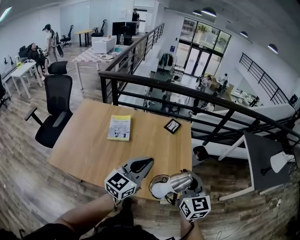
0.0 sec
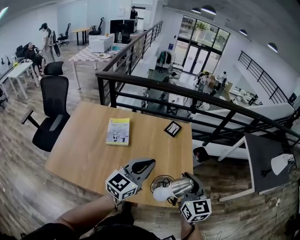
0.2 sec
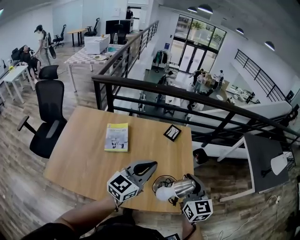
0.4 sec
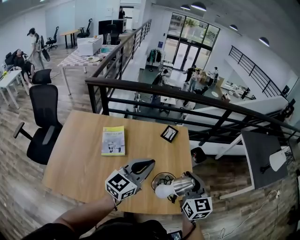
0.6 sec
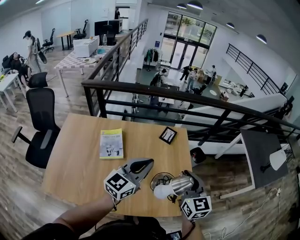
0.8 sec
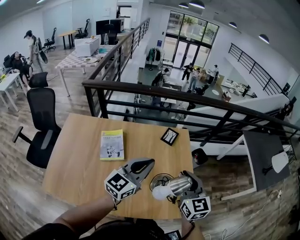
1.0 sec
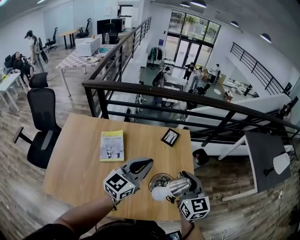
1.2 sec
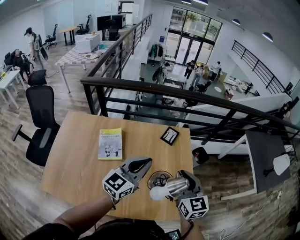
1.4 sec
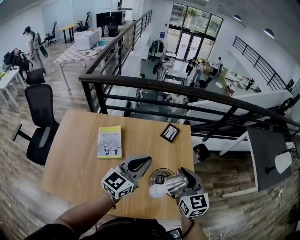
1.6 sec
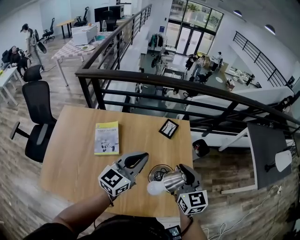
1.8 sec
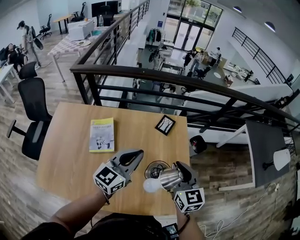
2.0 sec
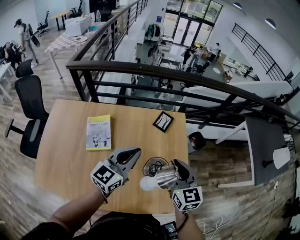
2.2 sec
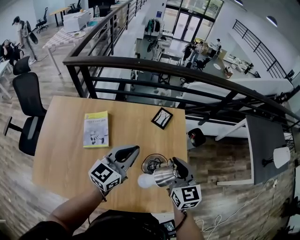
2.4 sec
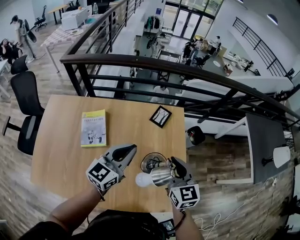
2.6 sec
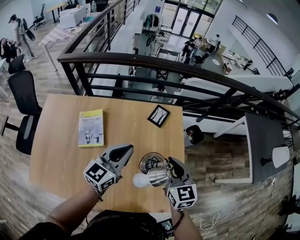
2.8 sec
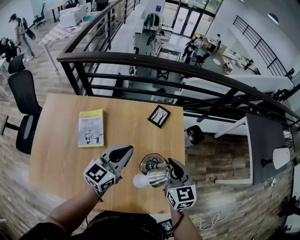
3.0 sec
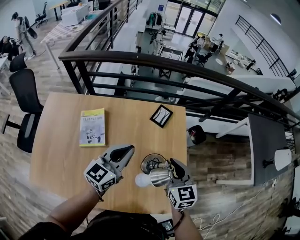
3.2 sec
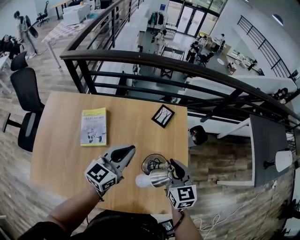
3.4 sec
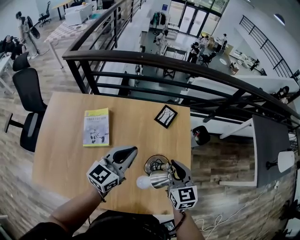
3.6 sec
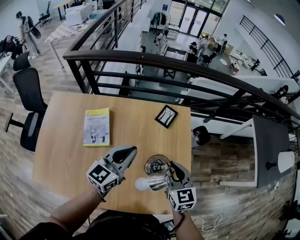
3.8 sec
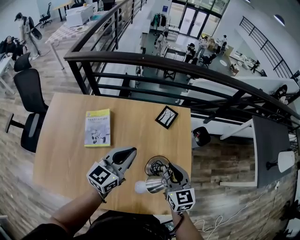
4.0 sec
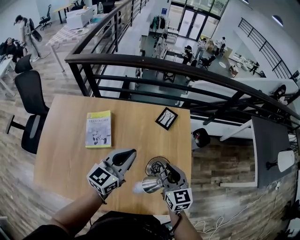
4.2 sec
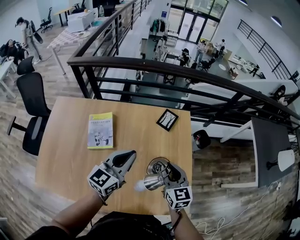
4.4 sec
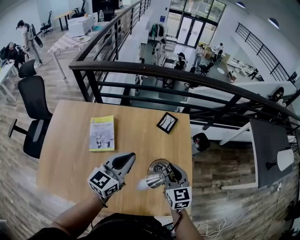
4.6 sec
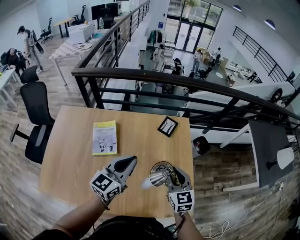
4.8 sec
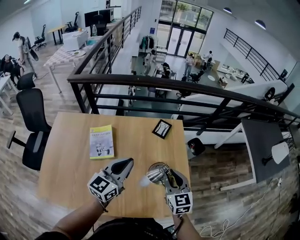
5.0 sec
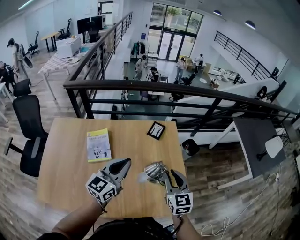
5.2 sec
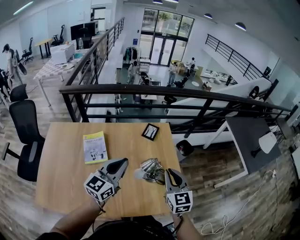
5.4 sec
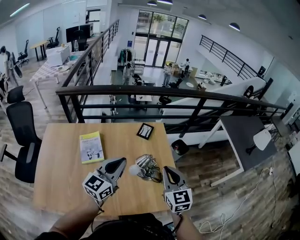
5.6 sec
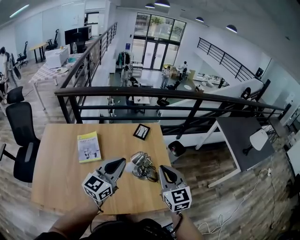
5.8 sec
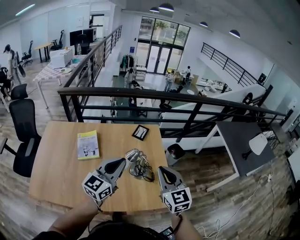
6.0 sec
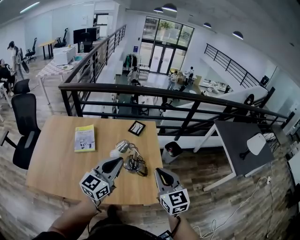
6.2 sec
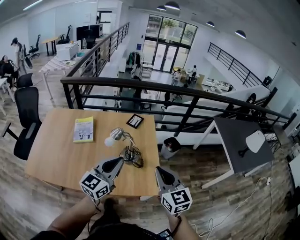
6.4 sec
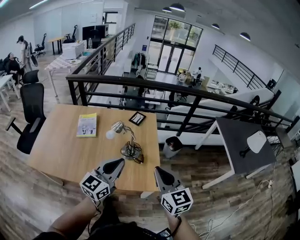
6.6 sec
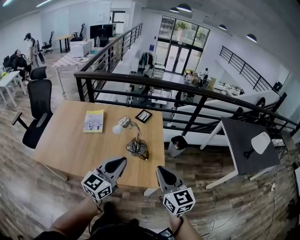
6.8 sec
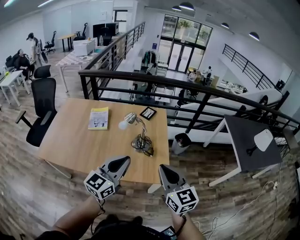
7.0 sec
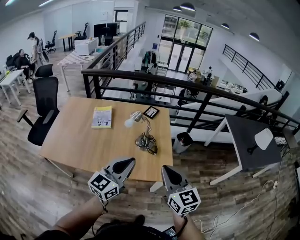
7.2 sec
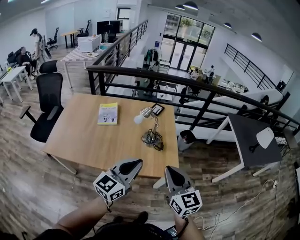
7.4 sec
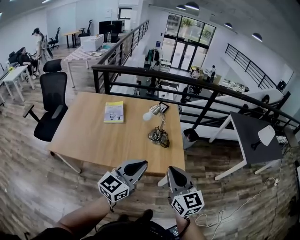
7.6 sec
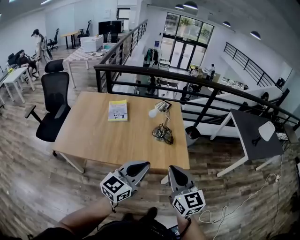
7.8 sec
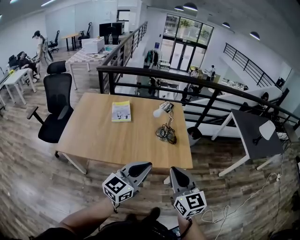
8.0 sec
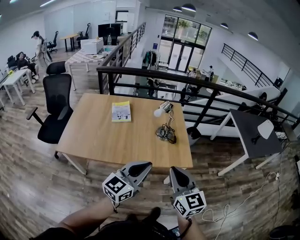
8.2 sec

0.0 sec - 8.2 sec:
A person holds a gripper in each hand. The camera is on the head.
0.0 sec - 1.6 sec: Both grippers travel together forward, about 25 cm.
1.6 sec - 3.2 sec: The left gripper heads forward and downward, covering approximately 10 cm. The right gripper is displaced downward and forward by about 15 cm.
3.2 sec - 5.0 sec: Both grippers travel together backward, some 10 cm.
5.0 sec - 6.6 sec: The right gripper moves backward, to the right and upward, about 35 cm, while the left gripper heads backward and to the right, covering some 35 cm.
6.6 sec - 8.2 sec: Both grippers travel together backward and to the left, approximately 30 cm.

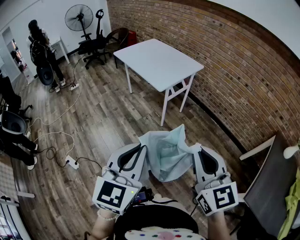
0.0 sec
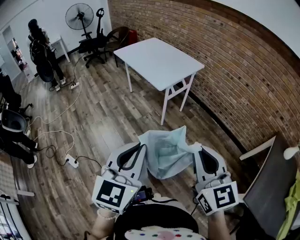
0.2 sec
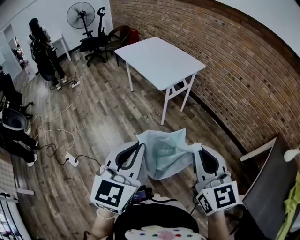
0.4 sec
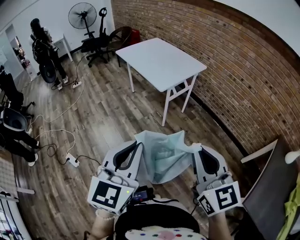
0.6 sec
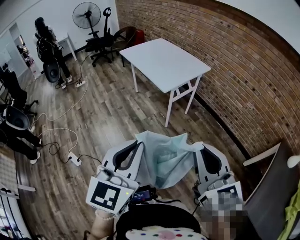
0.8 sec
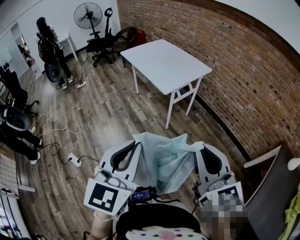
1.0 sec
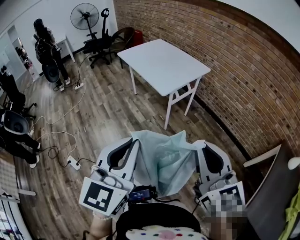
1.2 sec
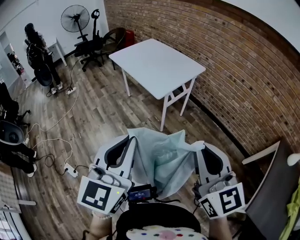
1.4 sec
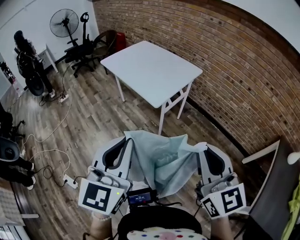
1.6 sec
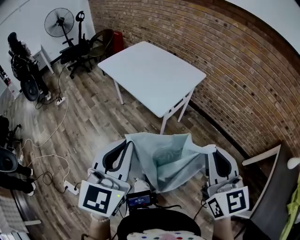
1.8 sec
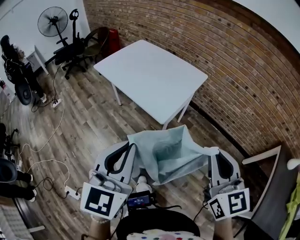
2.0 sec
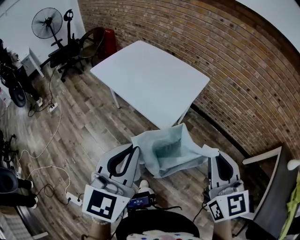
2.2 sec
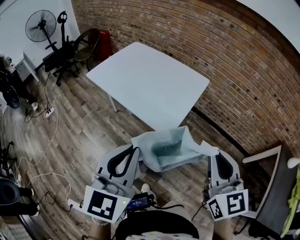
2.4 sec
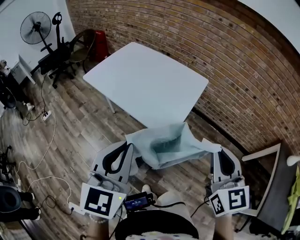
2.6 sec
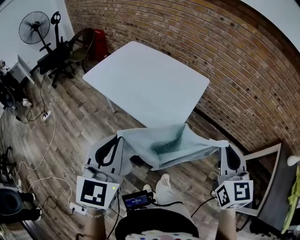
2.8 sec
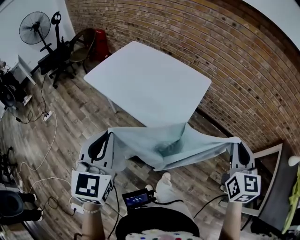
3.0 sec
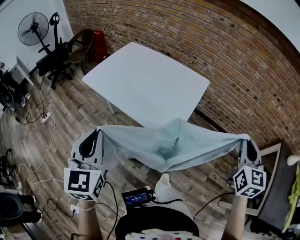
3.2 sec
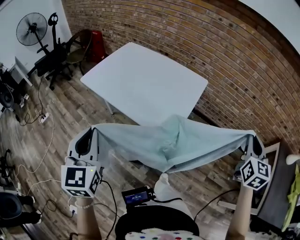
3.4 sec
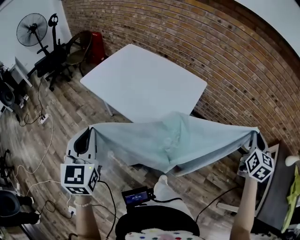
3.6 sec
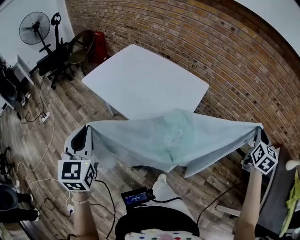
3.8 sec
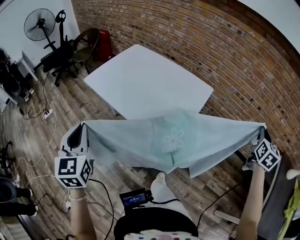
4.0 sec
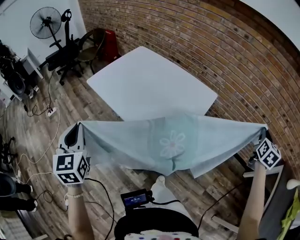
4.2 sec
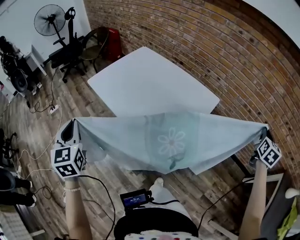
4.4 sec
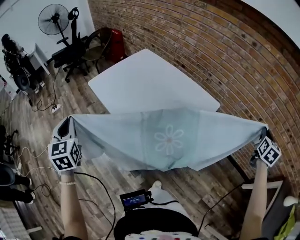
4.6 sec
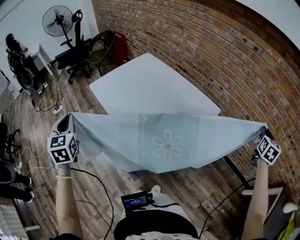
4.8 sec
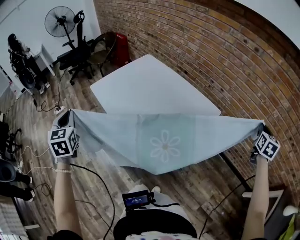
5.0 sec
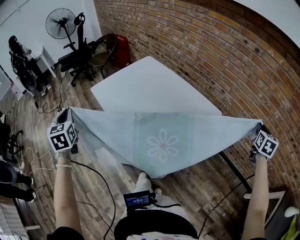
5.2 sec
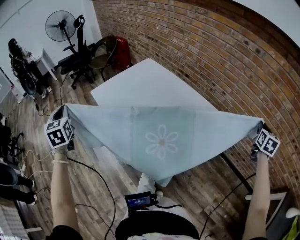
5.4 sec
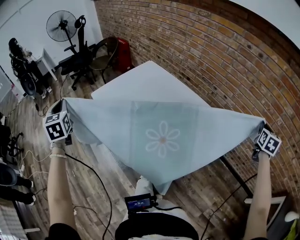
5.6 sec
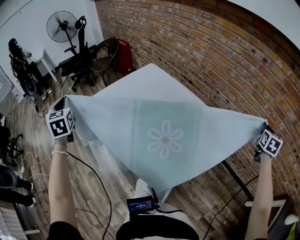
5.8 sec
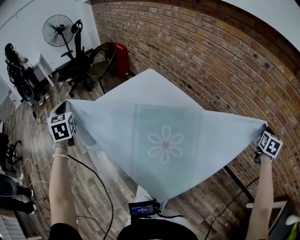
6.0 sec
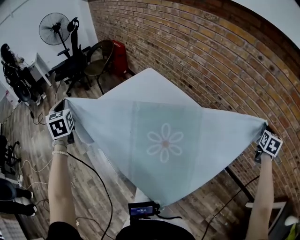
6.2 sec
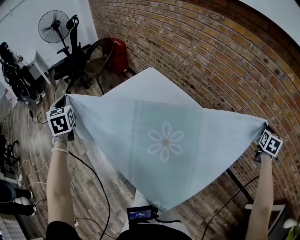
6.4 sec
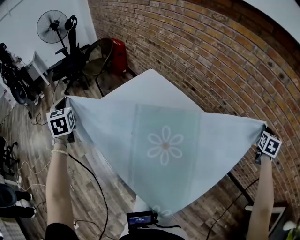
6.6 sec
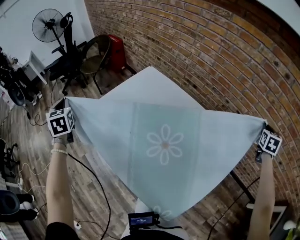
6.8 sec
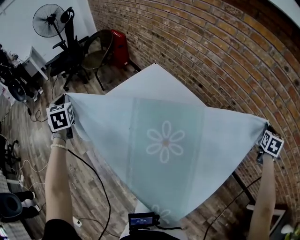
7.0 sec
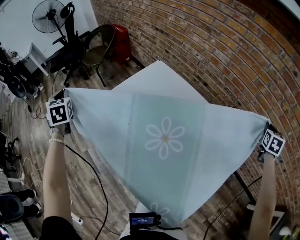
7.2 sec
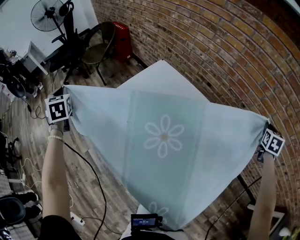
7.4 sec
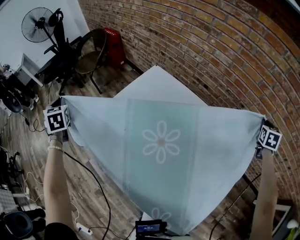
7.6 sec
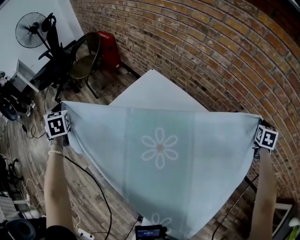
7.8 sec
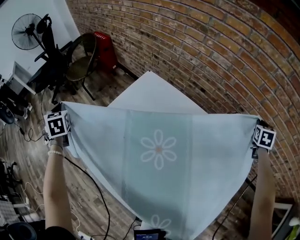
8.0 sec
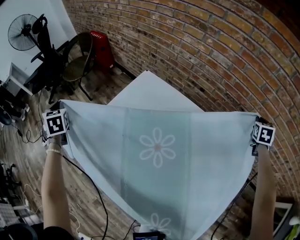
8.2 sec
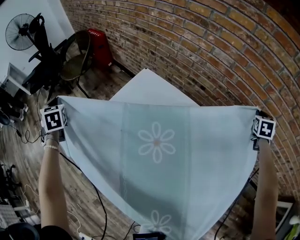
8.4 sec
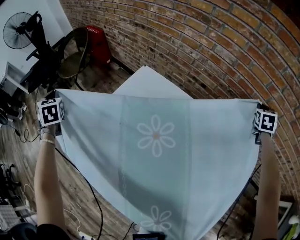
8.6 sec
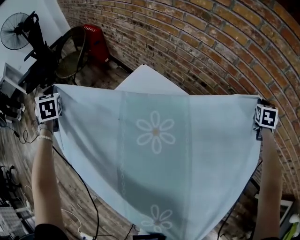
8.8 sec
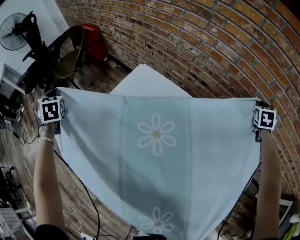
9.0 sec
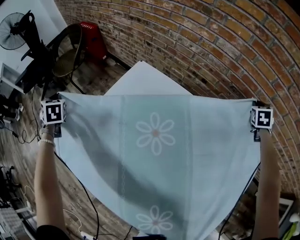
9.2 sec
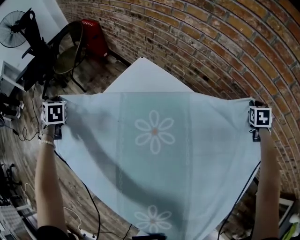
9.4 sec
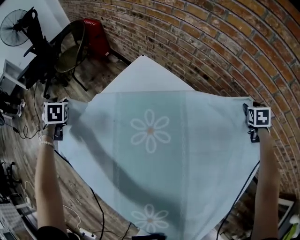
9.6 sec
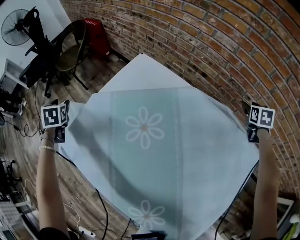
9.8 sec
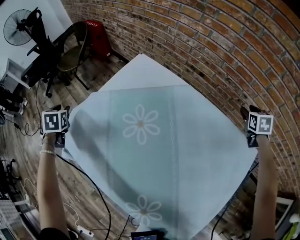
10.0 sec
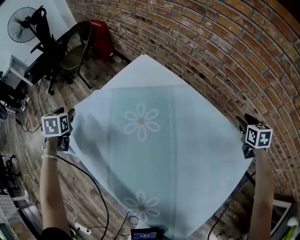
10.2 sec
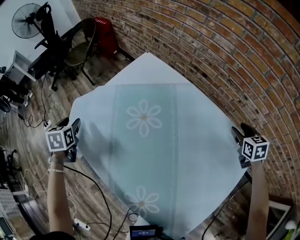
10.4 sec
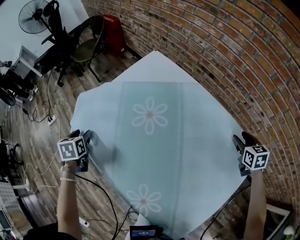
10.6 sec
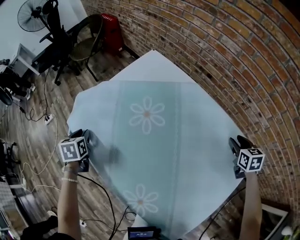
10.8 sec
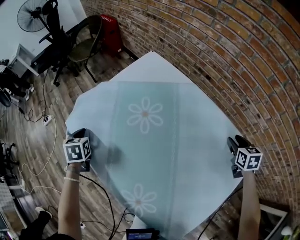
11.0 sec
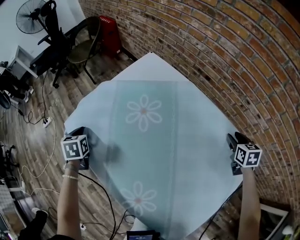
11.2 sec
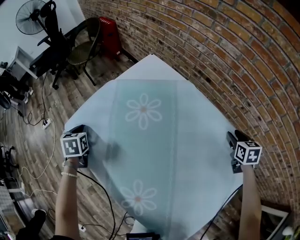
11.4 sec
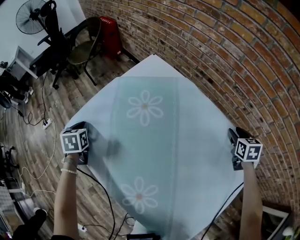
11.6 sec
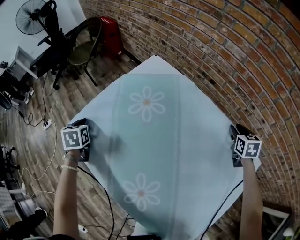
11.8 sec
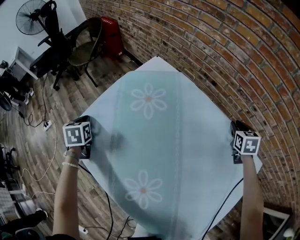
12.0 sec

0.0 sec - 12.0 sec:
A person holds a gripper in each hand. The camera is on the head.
0.0 sec - 1.6 sec: The grippers both shift forward by roughly 15 cm.
1.6 sec - 3.0 sec: The right gripper is displaced forward by roughly 25 cm, and turns by about 40 degrees; the left gripper goes some 35 cm forward and to the left.
3.0 sec - 4.4 sec: The left gripper travels to the left and forward by some 15 cm, and rotates some 30 degrees. The right gripper travels forward and to the right by roughly 35 cm, and turns by roughly 20 degrees.
4.4 sec - 6.0 sec: The right gripper shifts about 25 cm forward; the left gripper heads forward and to the left, covering roughly 25 cm.
6.0 sec - 7.6 sec: Both grippers move forward, to the left and downward, about 30 cm.
7.6 sec - 9.0 sec: Both grippers travel together forward and downward, some 15 cm.
9.0 sec - 10.4 sec: The right gripper moves backward, to the left and downward, some 20 cm, rotates about 40 degrees, and opens its fingers; the left gripper heads backward, covering roughly 25 cm, swivels roughly 30 degrees, and opens its fingers.
10.4 sec - 12.0 sec: The right gripper goes approximately 10 cm forward, and closes, while the left gripper shifts approximately 5 cm downward, and closes up.

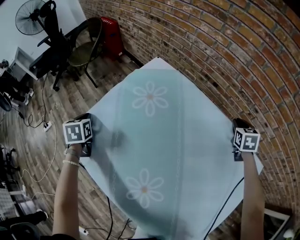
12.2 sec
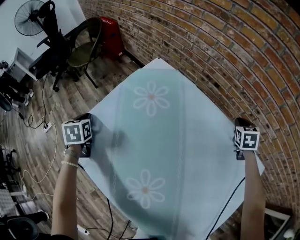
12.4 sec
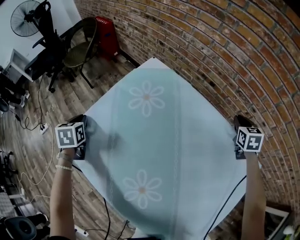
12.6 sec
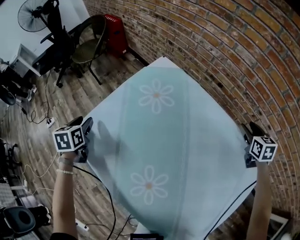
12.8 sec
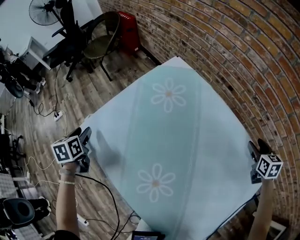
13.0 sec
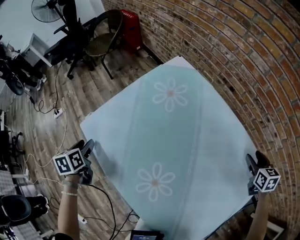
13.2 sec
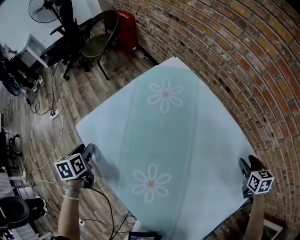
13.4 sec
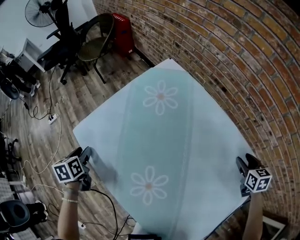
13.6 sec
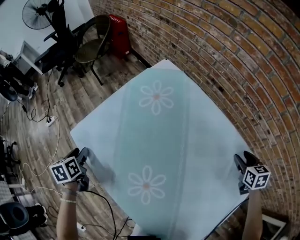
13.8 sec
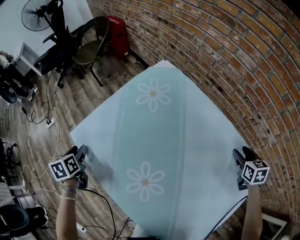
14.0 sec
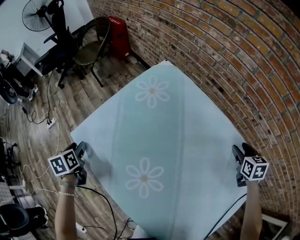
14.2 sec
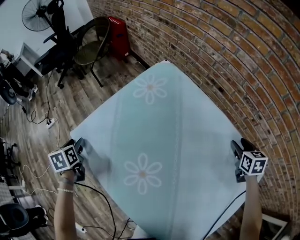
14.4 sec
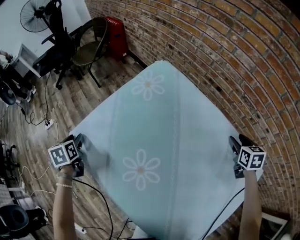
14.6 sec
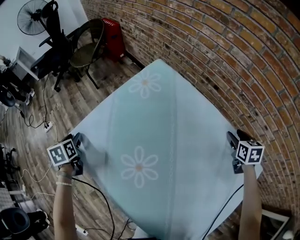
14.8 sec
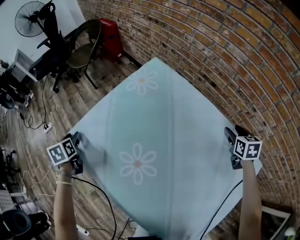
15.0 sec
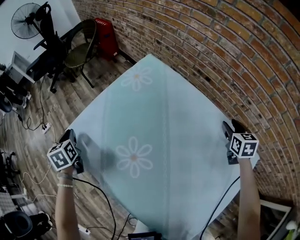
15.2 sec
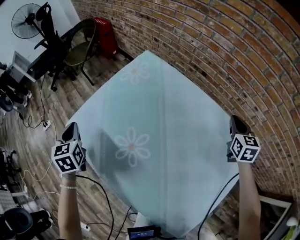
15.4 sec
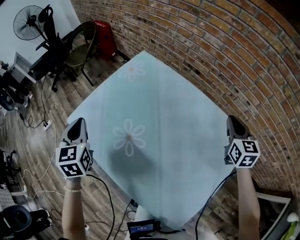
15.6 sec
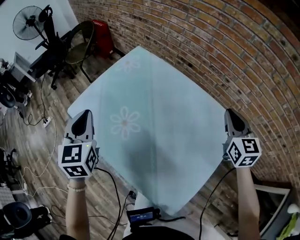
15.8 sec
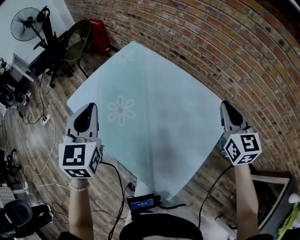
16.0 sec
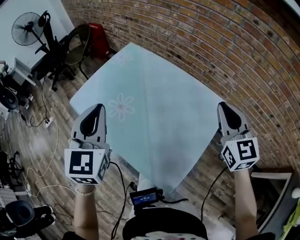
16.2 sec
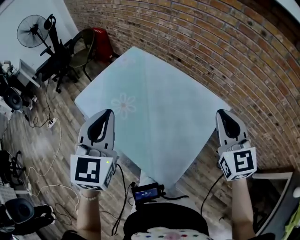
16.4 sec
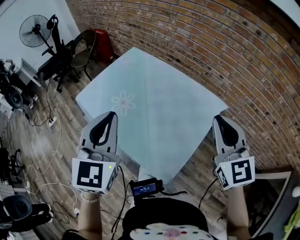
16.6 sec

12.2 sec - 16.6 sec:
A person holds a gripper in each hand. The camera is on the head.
12.2 sec - 13.6 sec: Both grippers travel together backward, about 15 cm. The left gripper changes its angle by approximately 20 degrees, and opens its fingers. Meanwhile the right gripper opens.
13.6 sec - 15.2 sec: Both grippers travel together forward, roughly 10 cm. The left gripper closes its fingers.
15.2 sec - 16.6 sec: The left gripper shifts roughly 60 cm to the right, upward and backward, and points its fingers approximately 30 degrees further upward. Meanwhile the right gripper goes some 50 cm backward and upward, tips its fingers upward by approximately 30 degrees, and closes.
